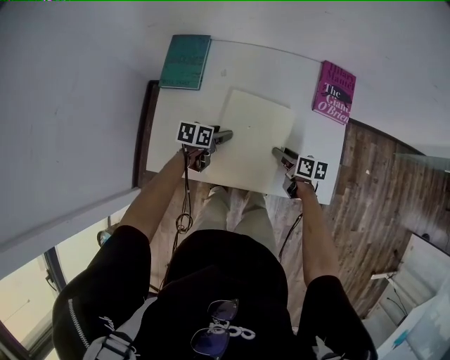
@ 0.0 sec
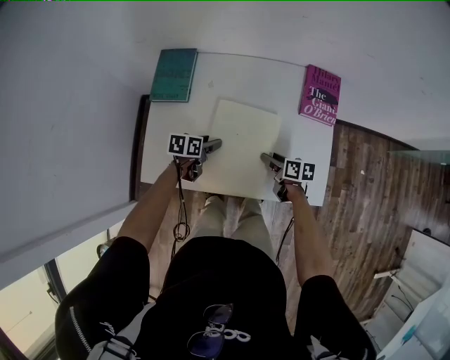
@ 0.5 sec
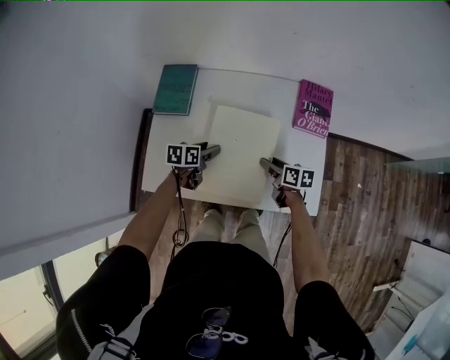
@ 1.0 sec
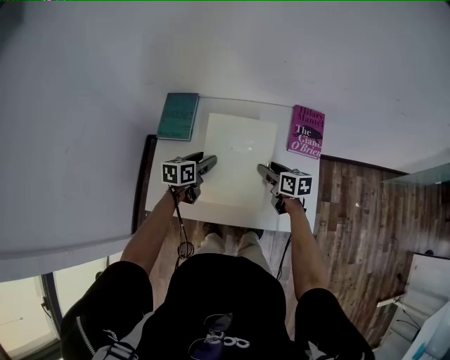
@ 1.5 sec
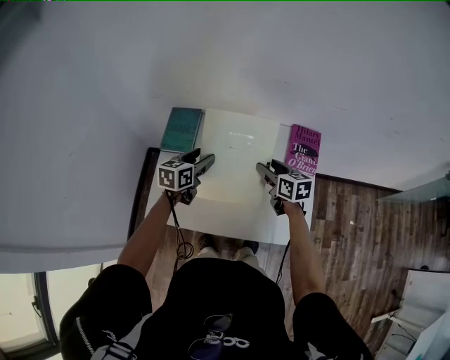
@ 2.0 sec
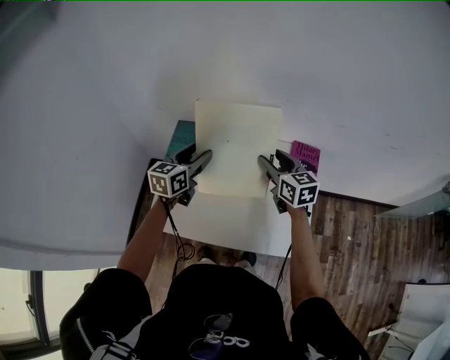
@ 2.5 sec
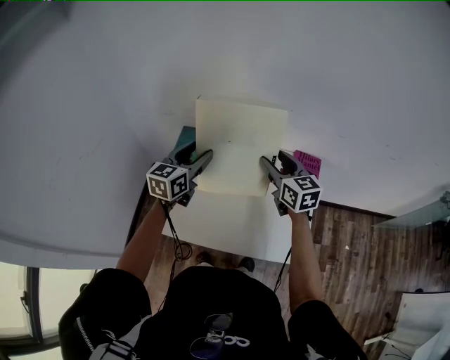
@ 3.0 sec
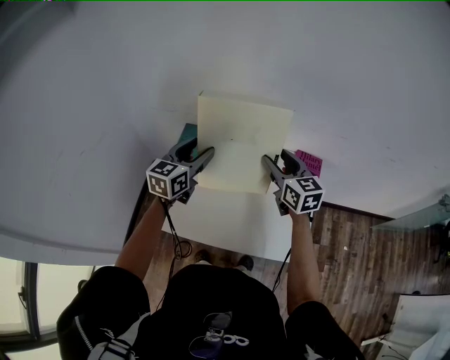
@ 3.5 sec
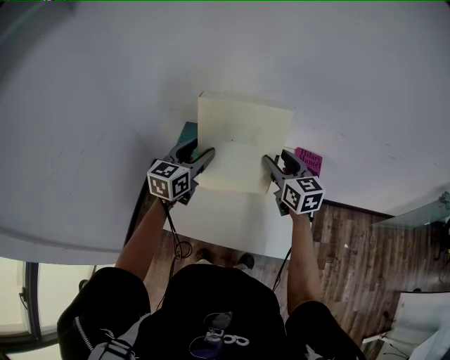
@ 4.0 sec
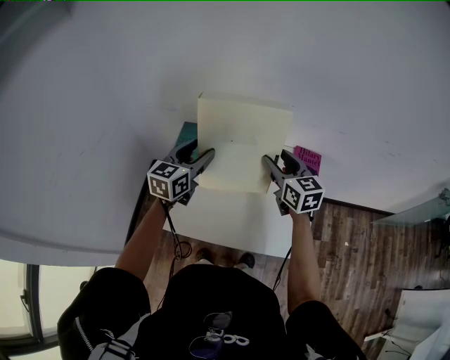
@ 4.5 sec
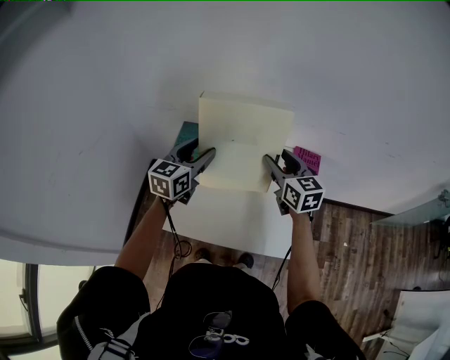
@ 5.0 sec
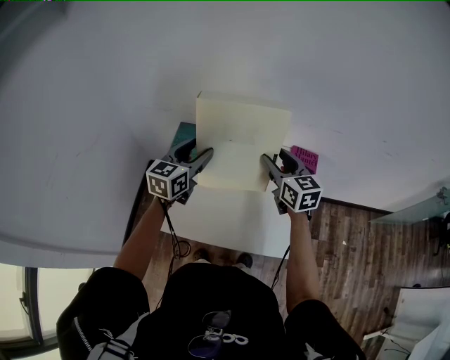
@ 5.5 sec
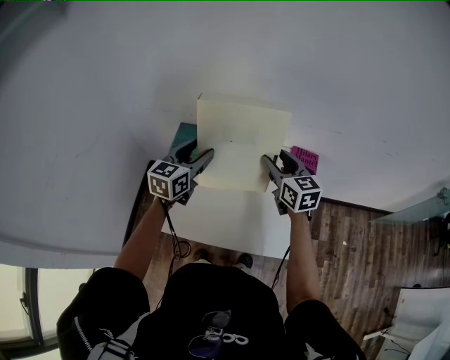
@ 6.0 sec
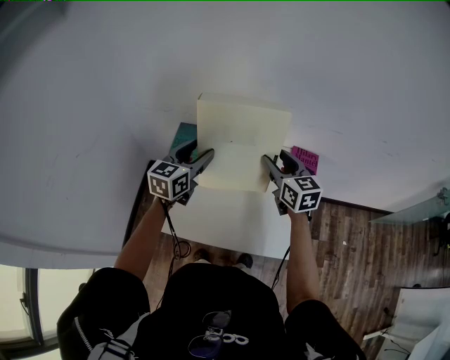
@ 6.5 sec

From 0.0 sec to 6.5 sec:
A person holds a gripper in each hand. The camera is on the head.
From 0.0 sec to 2.0 sec: The left gripper shifts roughly 25 cm upward, and rotates approximately 30 degrees. Meanwhile the right gripper goes approximately 25 cm upward and forward, and swivels some 30 degrees.
From 2.0 sec to 4.5 sec: The two grippers go roughly 15 cm upward. The right gripper changes its angle by approximately 20 degrees. Meanwhile the left gripper swivels approximately 20 degrees.
From 4.5 sec to 6.5 sec: The two grippers keep their place.

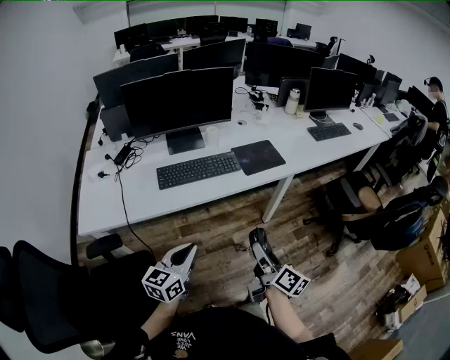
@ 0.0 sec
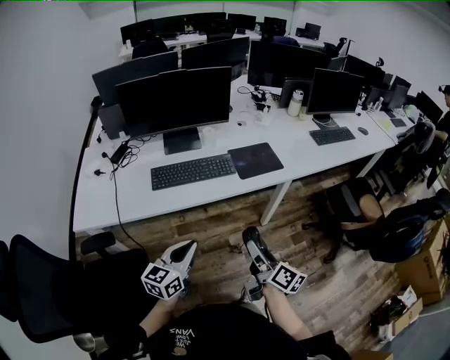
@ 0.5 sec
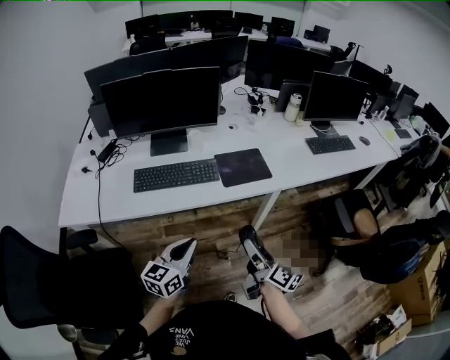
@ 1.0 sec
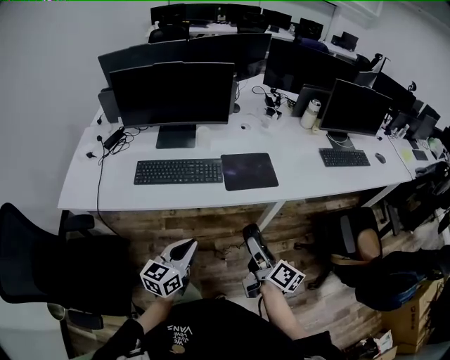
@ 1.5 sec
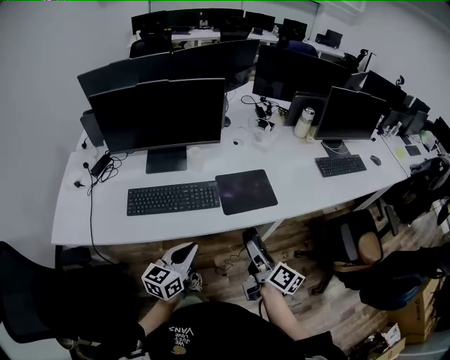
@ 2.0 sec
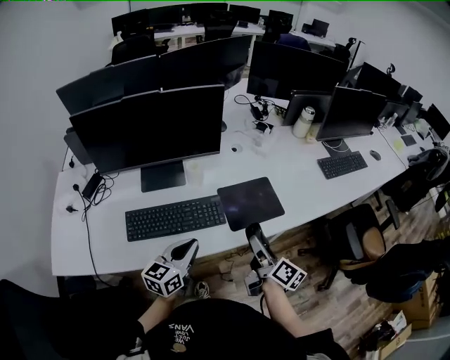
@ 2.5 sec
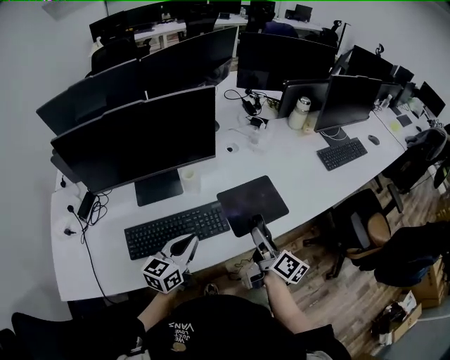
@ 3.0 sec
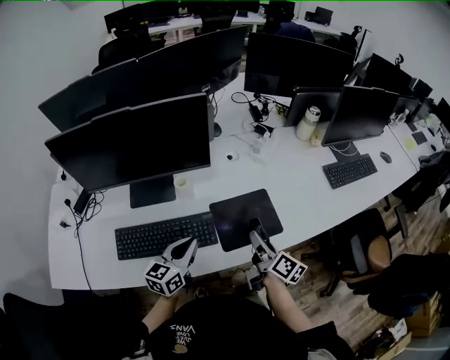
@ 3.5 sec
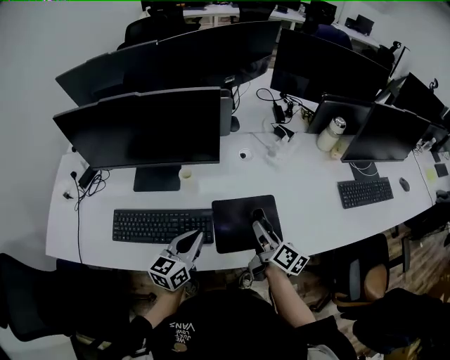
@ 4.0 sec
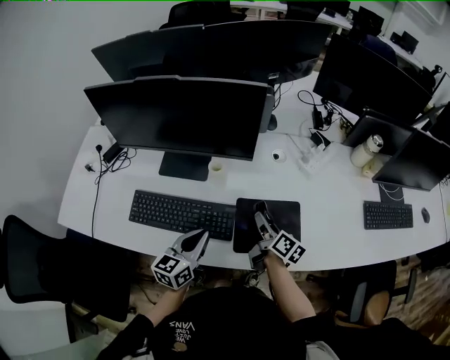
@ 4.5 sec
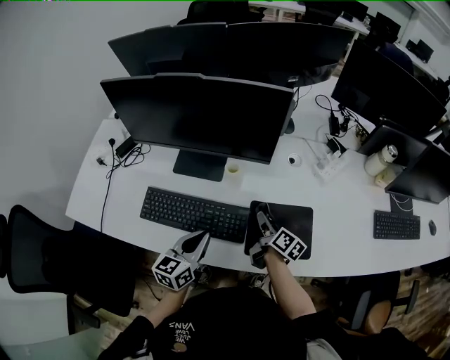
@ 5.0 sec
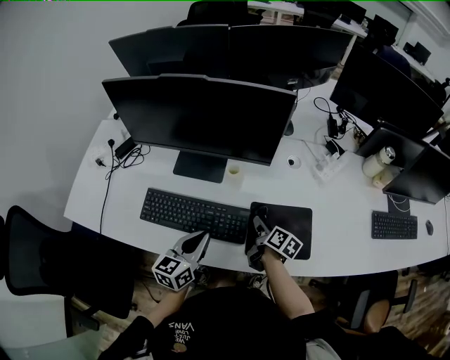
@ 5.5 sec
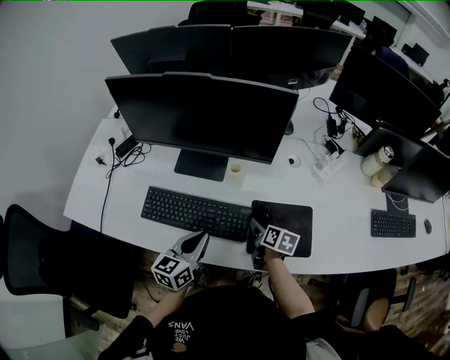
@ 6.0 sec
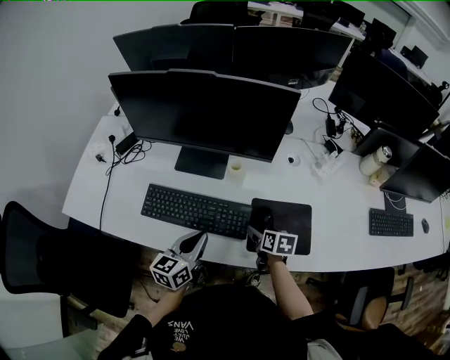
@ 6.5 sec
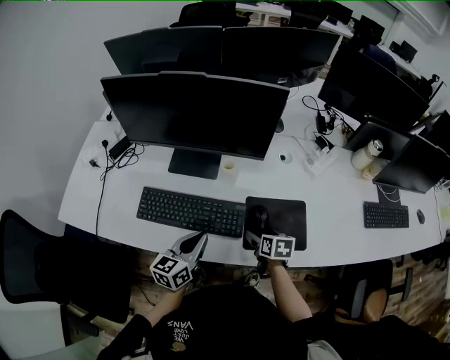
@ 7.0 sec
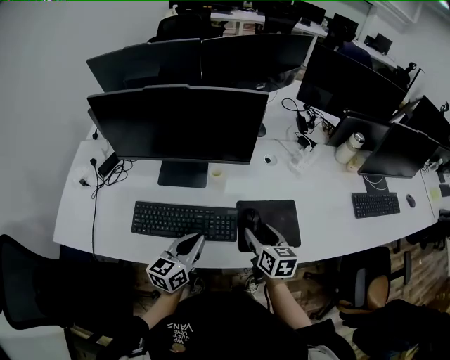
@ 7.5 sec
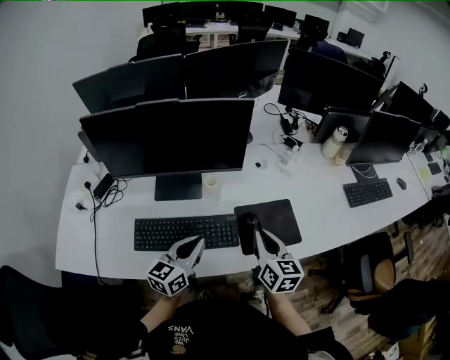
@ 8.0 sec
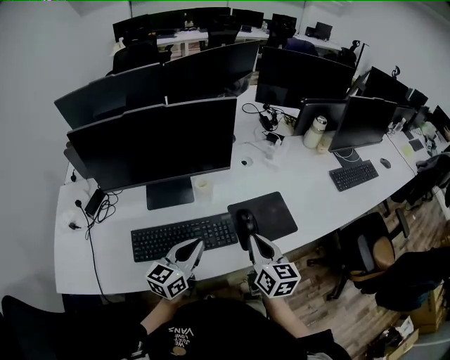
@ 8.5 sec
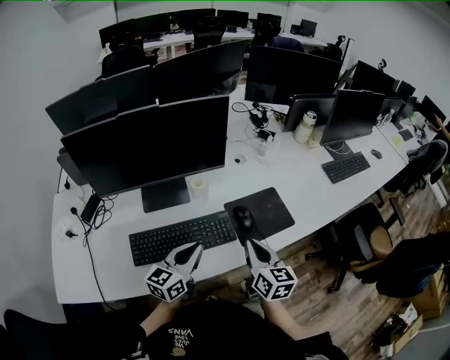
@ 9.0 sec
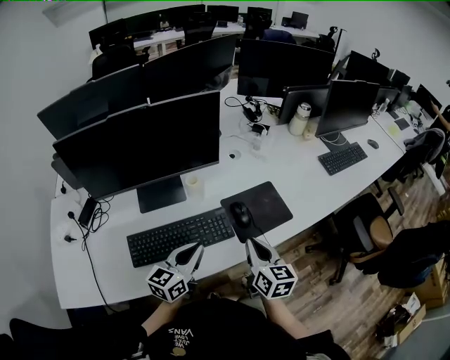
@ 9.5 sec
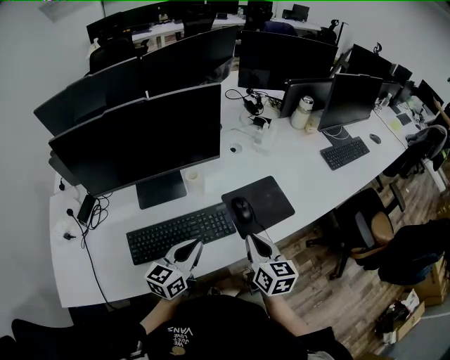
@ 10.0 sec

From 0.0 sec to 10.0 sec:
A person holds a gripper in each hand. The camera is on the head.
From 0.0 sec to 2.0 sec: The two grippers go about 25 cm forward and to the right.
From 2.0 sec to 4.0 sec: Both grippers move forward, roughly 25 cm.
From 4.0 sec to 6.0 sec: The right gripper is displaced to the left and downward by approximately 15 cm, and turns by about 40 degrees. Meanwhile the left gripper is displaced to the left by some 10 cm.
From 6.0 sec to 8.0 sec: The left gripper changes place by some 5 cm, and swivels some 20 degrees, while the right gripper is displaced upward and backward by roughly 20 cm, rotates roughly 40 degrees, and closes up.
From 8.0 sec to 10.0 sec: The right gripper is displaced backward by approximately 5 cm.

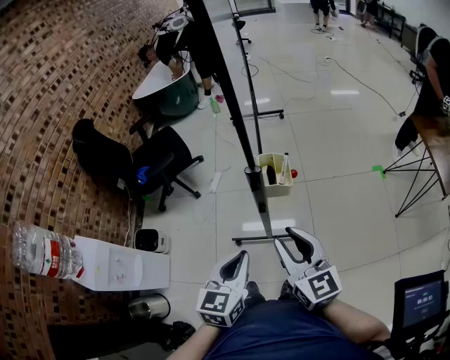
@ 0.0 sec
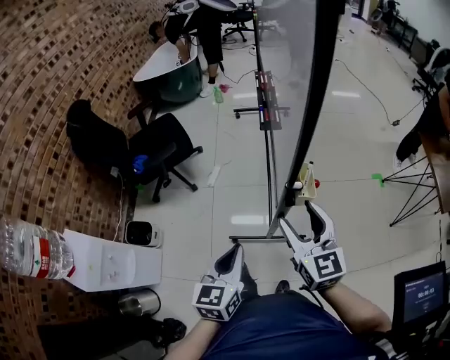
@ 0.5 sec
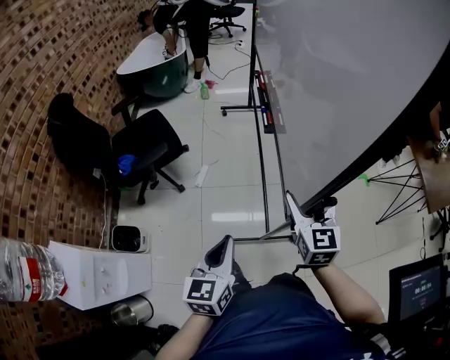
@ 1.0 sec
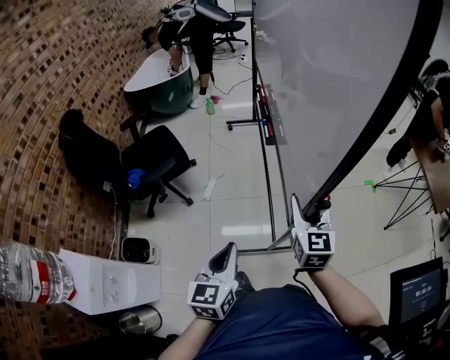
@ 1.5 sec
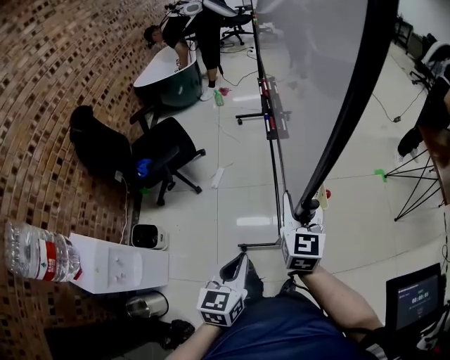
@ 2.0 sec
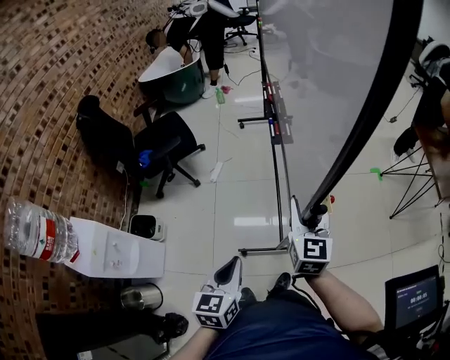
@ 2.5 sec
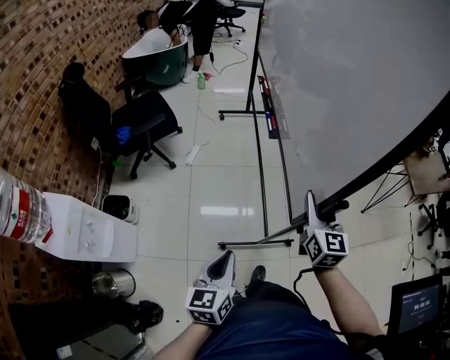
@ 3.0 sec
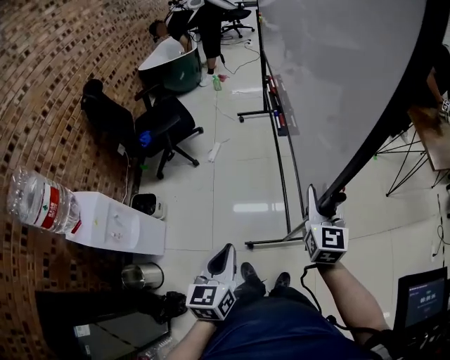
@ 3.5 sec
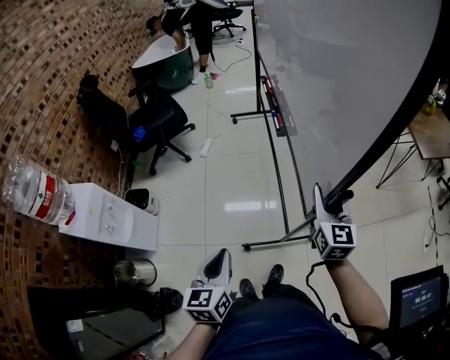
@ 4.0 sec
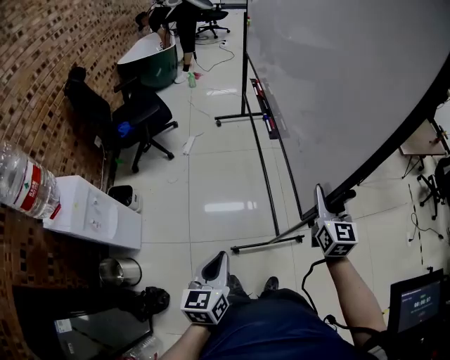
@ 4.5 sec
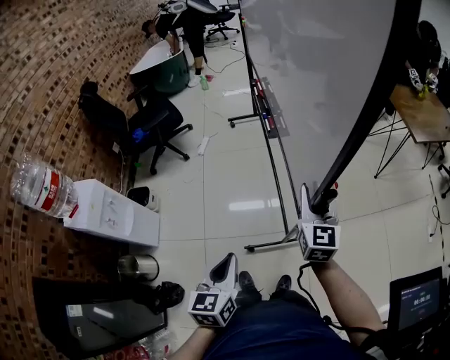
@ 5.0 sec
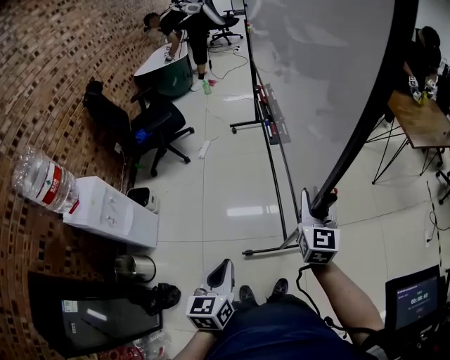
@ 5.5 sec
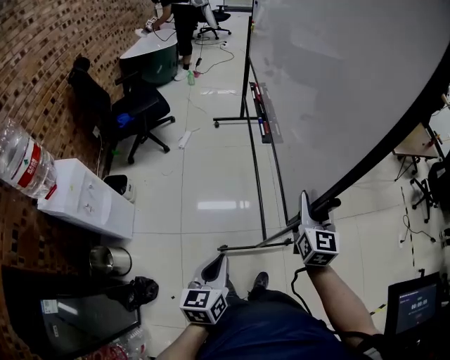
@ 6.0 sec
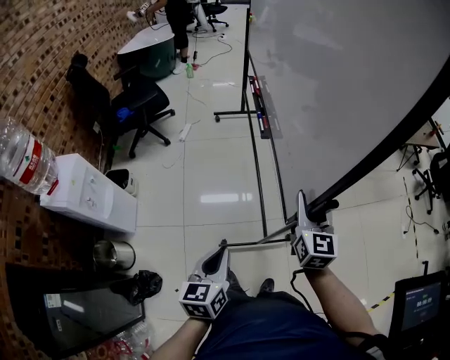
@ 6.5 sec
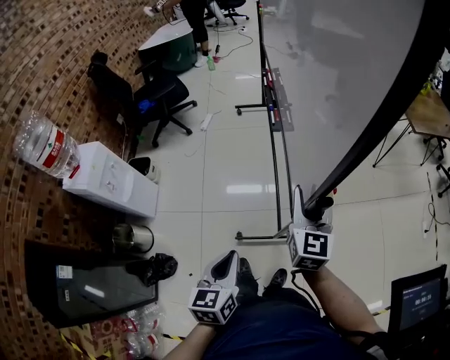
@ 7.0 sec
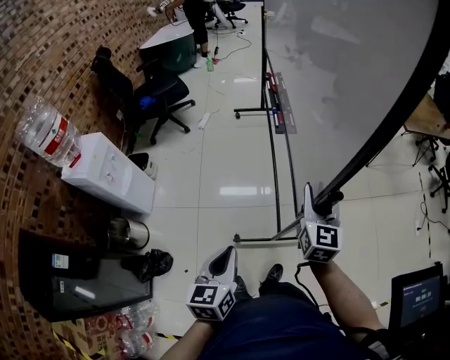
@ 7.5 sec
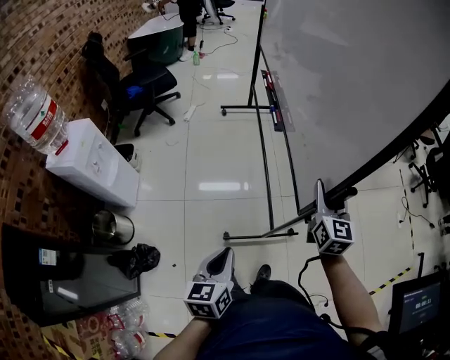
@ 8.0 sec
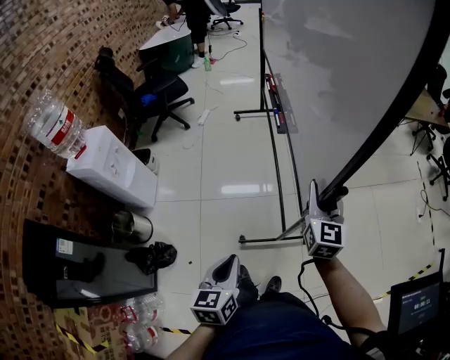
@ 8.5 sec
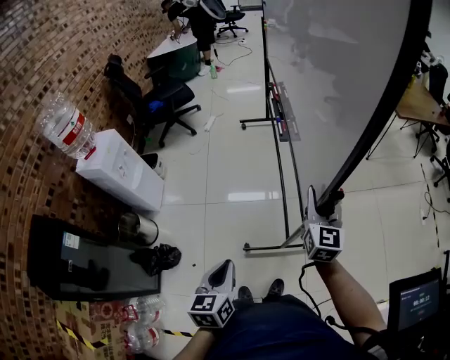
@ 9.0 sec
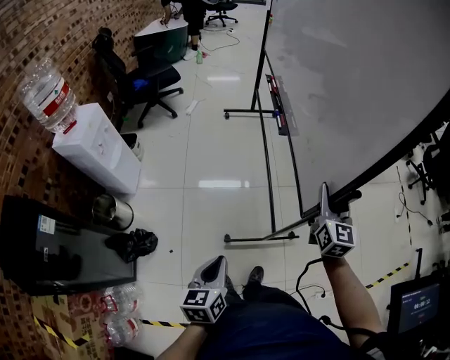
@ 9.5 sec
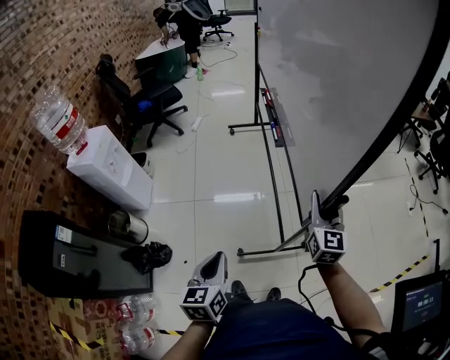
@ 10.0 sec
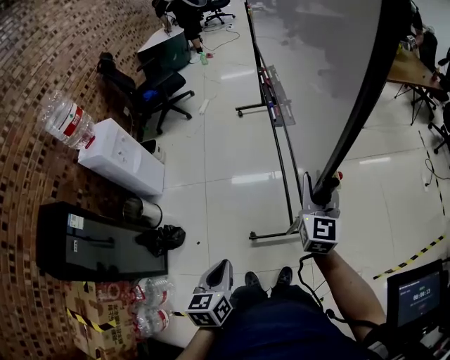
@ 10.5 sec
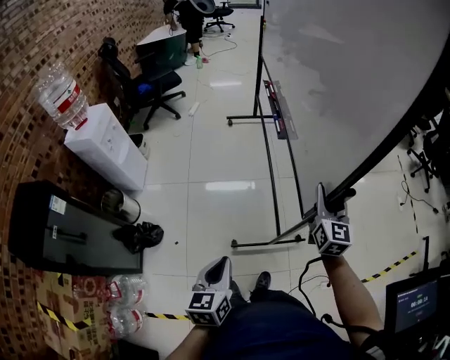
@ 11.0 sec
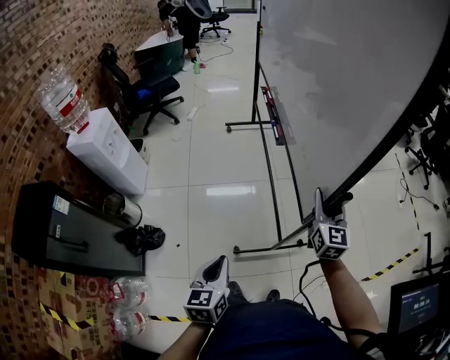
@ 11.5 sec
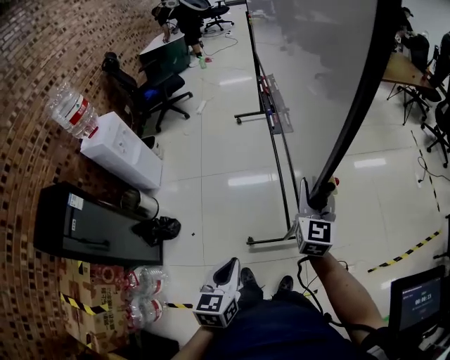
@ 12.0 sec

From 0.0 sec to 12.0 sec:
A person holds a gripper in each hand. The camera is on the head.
From 0.0 sec to 2.0 sec: The right gripper shifts roughly 15 cm forward, changes its angle by about 30 degrees, and opens, then closes again, while the left gripper is displaced to the left by approximately 5 cm.
From 2.0 sec to 4.0 sec: The right gripper heads backward and to the right, covering roughly 30 cm, while the left gripper moves backward, some 25 cm.
From 4.0 sec to 6.0 sec: Both grippers move backward, roughly 10 cm.
From 6.0 sec to 8.0 sec: The grippers both shift backward by about 15 cm.
From 8.0 sec to 10.0 sec: Both grippers move backward, roughly 15 cm.
From 10.0 sec to 12.0 sec: The left gripper goes roughly 20 cm backward and to the right. The right gripper goes about 10 cm backward.
